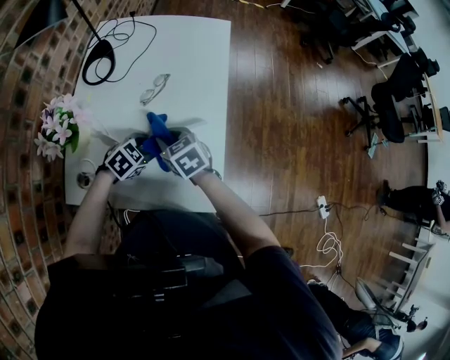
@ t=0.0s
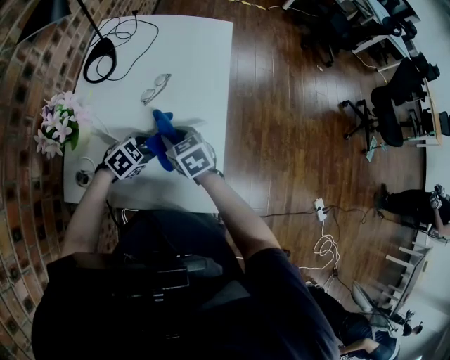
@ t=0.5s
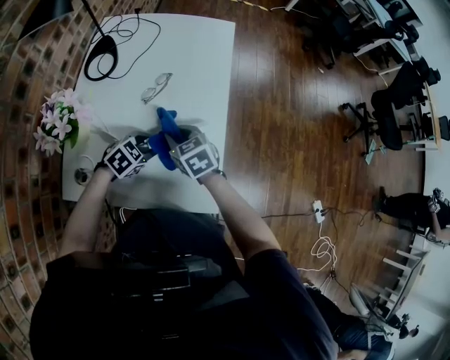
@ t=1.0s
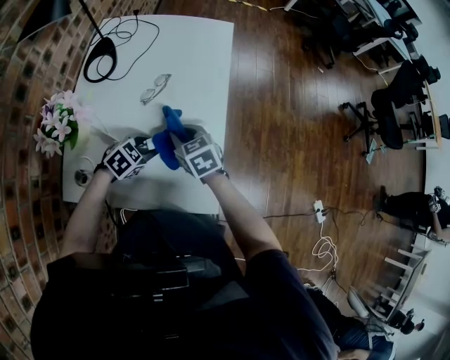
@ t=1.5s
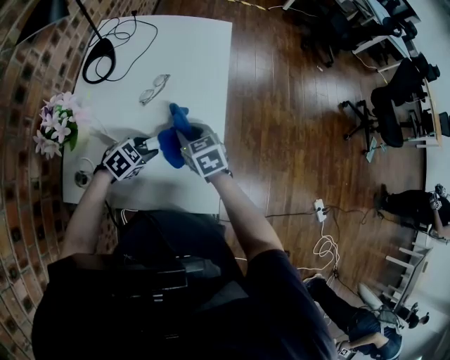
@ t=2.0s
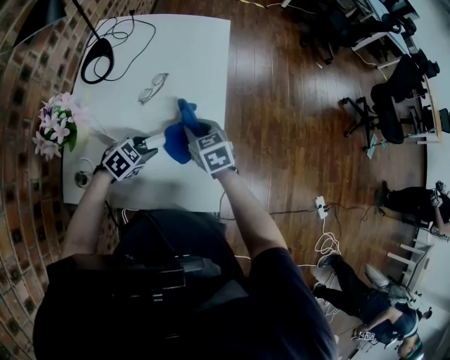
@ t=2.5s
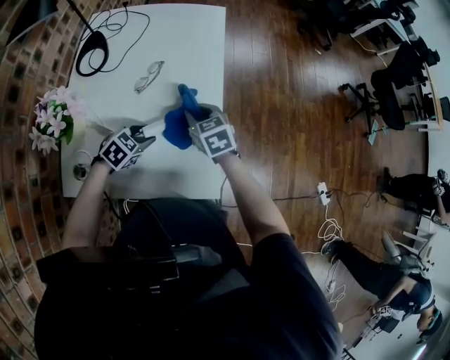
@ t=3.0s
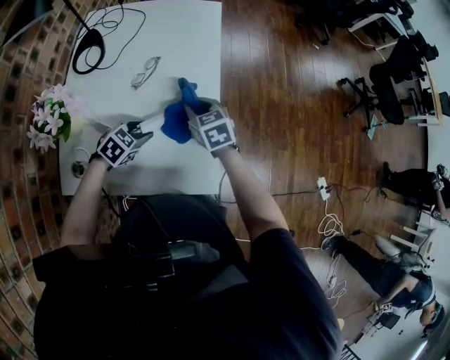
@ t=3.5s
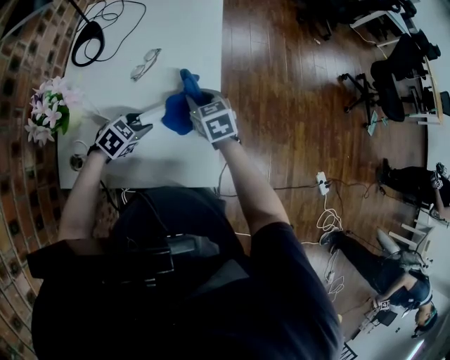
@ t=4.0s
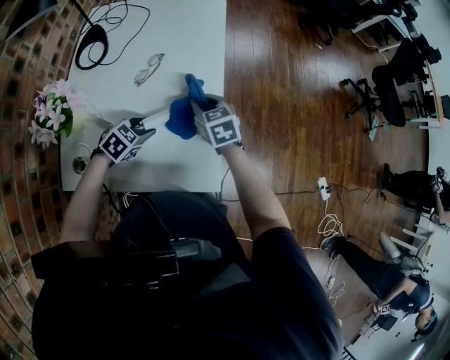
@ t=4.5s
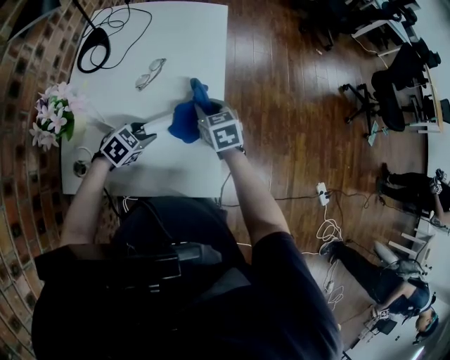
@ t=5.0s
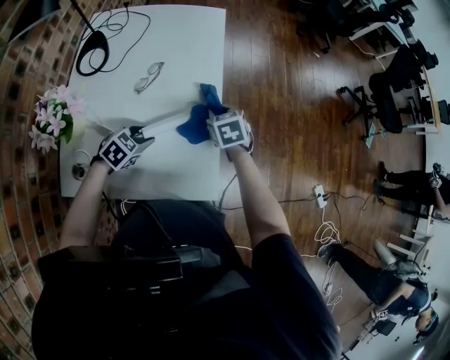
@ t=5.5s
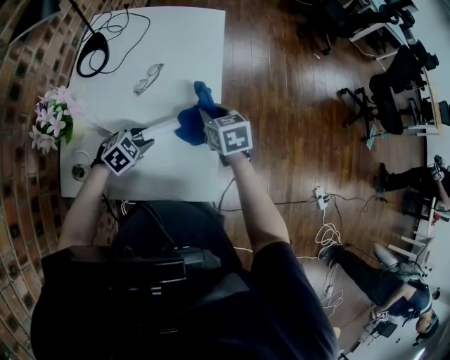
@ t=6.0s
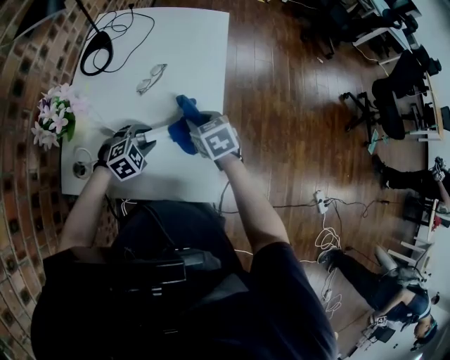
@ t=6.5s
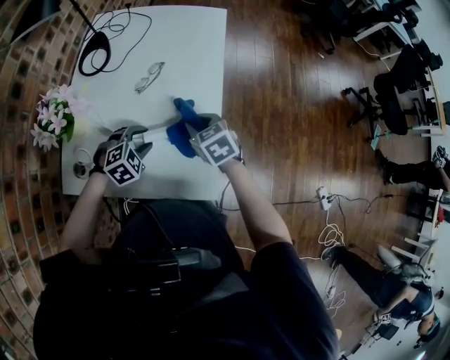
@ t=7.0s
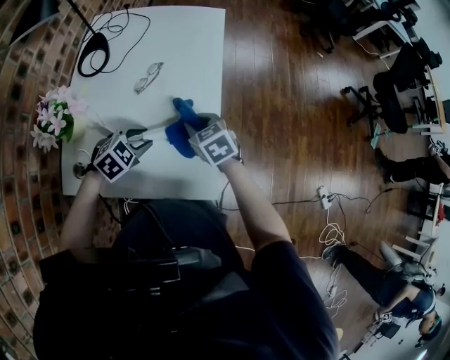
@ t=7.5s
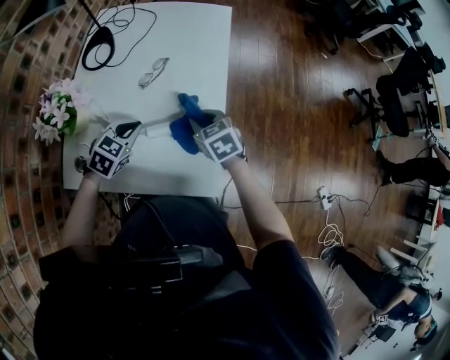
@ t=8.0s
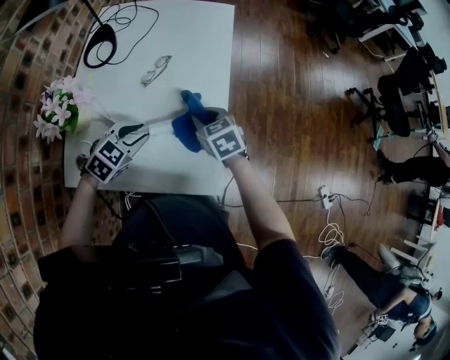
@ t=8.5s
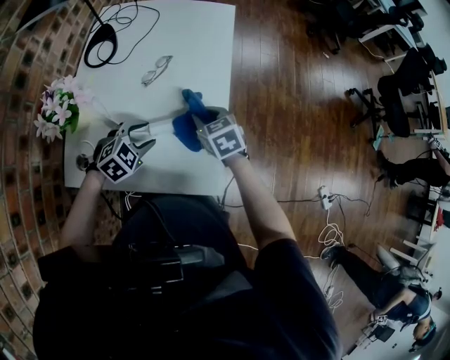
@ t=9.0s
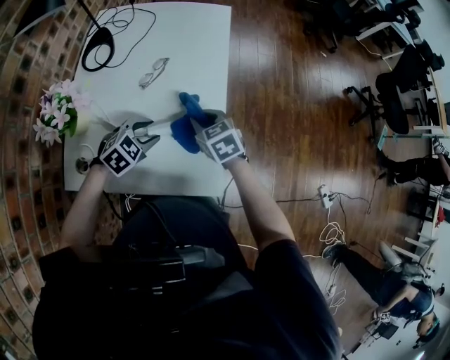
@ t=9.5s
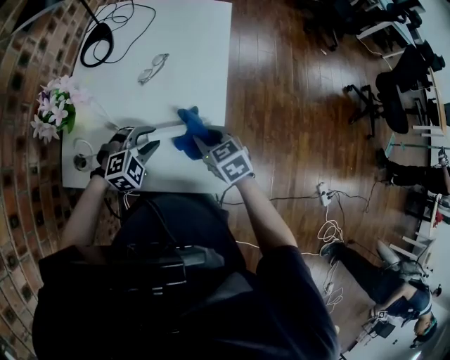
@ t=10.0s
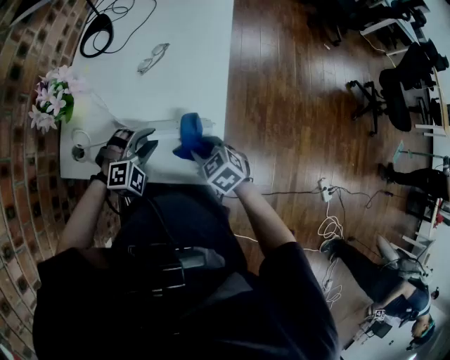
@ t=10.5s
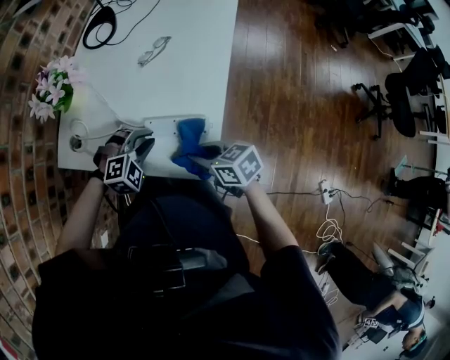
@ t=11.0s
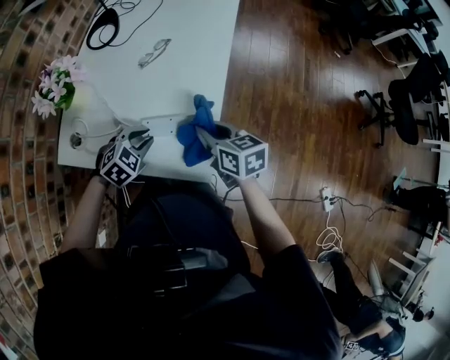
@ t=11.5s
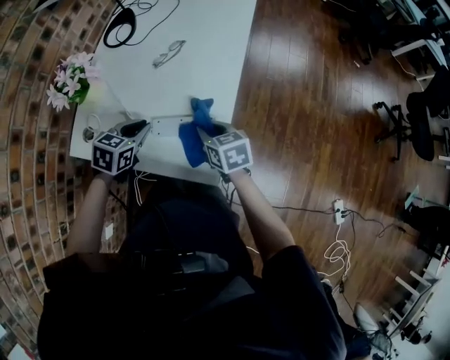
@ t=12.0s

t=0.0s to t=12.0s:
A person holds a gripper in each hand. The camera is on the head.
t=0.0s to t=2.0s: The right gripper travels to the right by approximately 5 cm.
t=2.0s to t=4.0s: The right gripper shifts by approximately 5 cm.
t=6.0s to t=8.0s: The left gripper heads upward, covering approximately 5 cm, and closes. Meanwhile the right gripper moves roughly 5 cm.
t=8.0s to t=10.0s: The right gripper shifts approximately 5 cm backward. The left gripper shifts approximately 10 cm to the right and backward, rotates some 30 degrees, and opens.
t=10.0s to t=12.0s: The right gripper moves about 10 cm backward and comes back, while the left gripper twists approximately 60 degrees counterclockwise, seen from behind, and closes up.

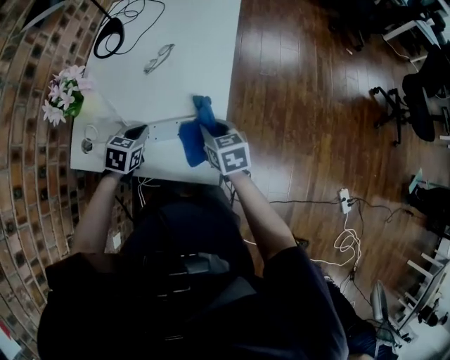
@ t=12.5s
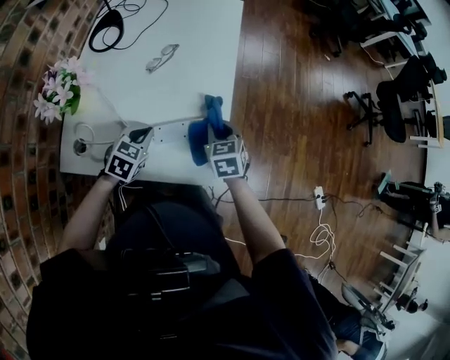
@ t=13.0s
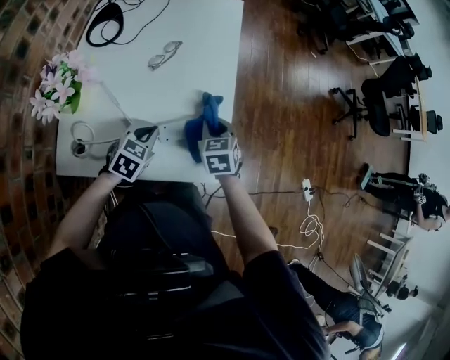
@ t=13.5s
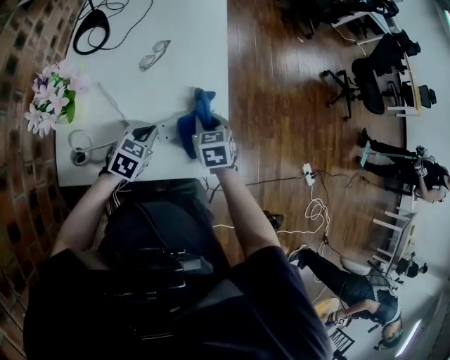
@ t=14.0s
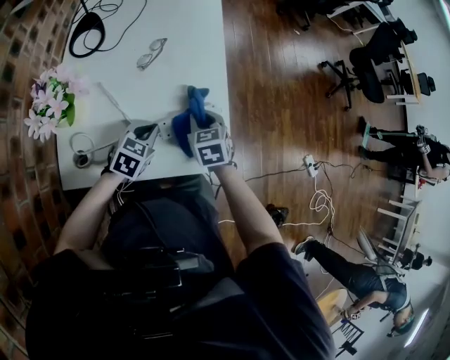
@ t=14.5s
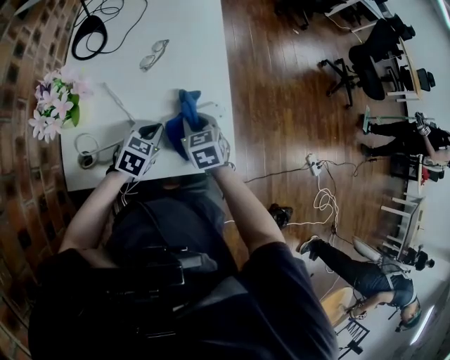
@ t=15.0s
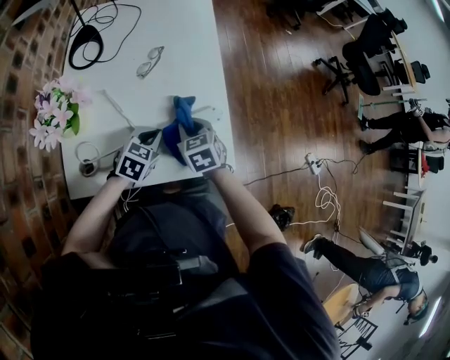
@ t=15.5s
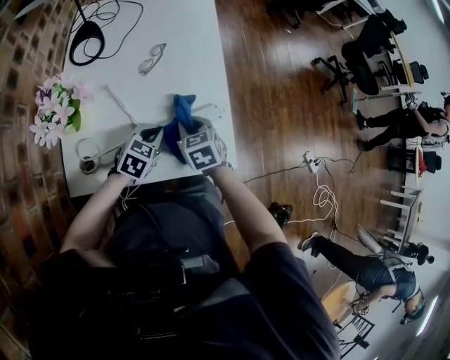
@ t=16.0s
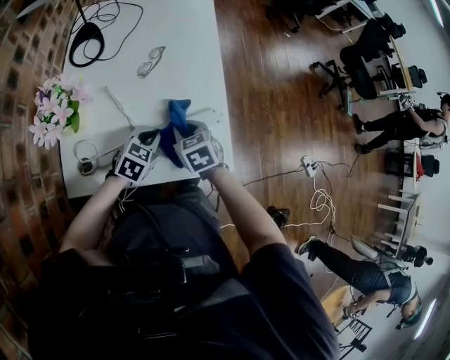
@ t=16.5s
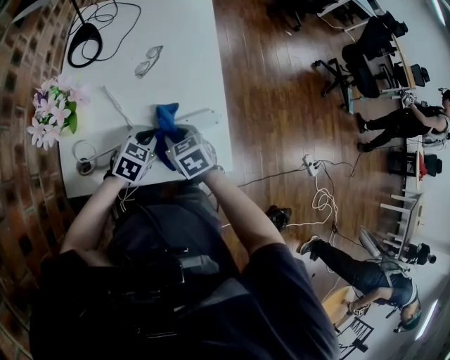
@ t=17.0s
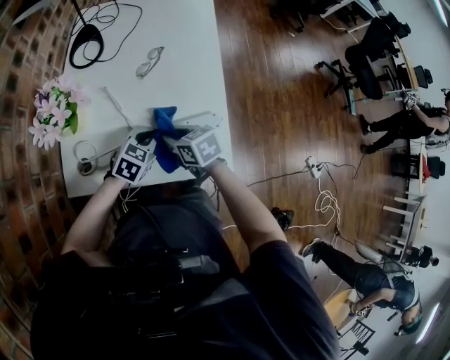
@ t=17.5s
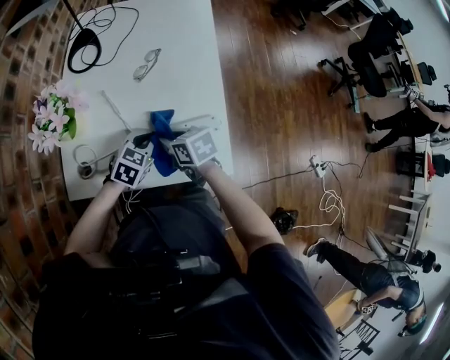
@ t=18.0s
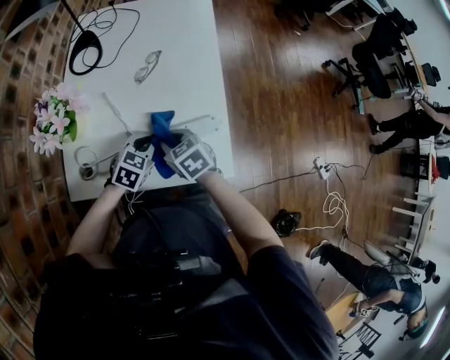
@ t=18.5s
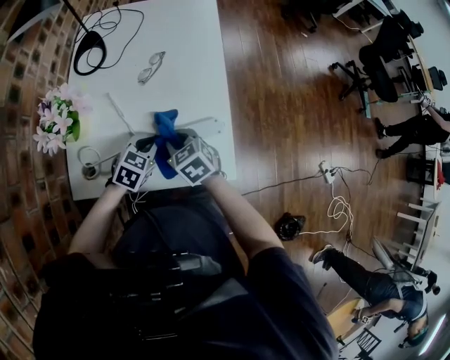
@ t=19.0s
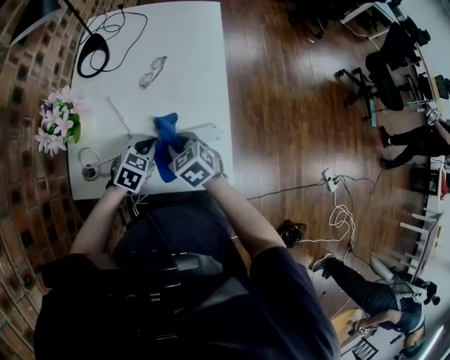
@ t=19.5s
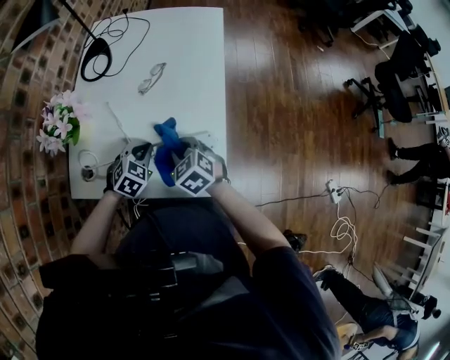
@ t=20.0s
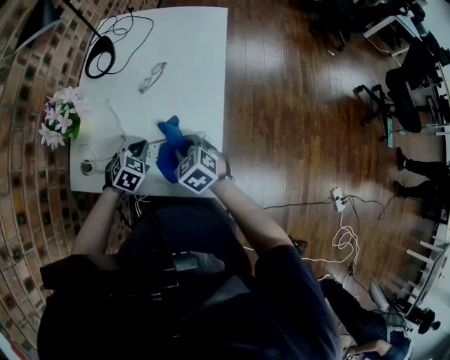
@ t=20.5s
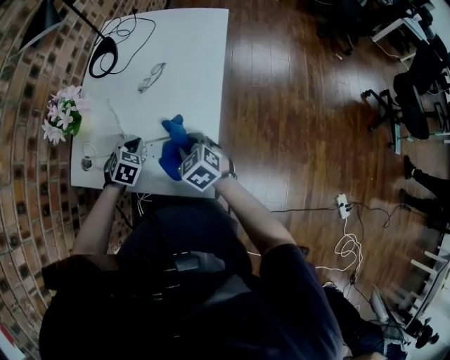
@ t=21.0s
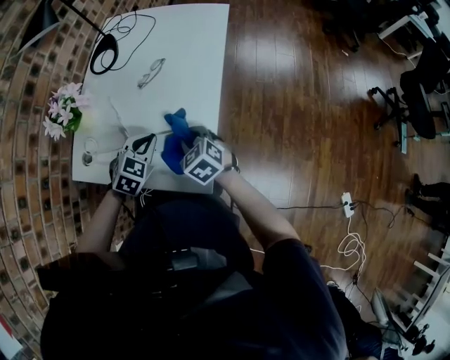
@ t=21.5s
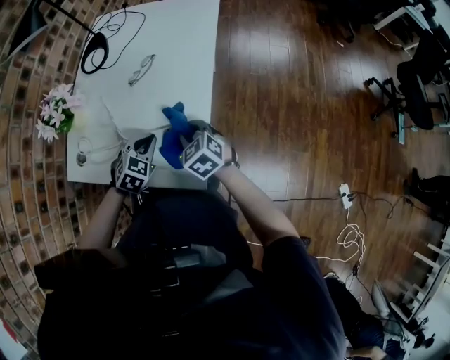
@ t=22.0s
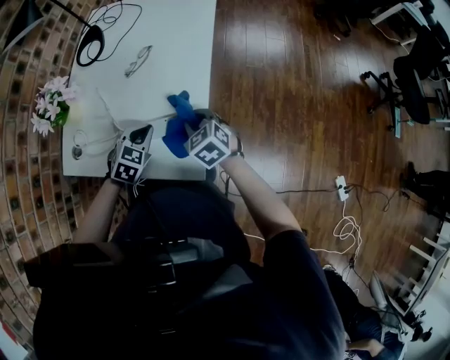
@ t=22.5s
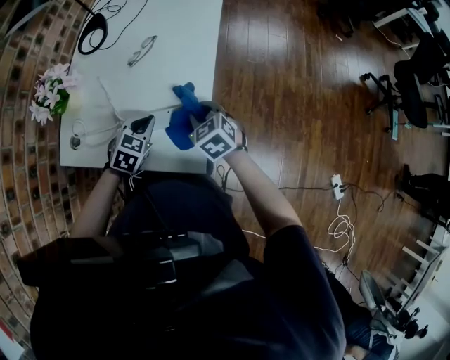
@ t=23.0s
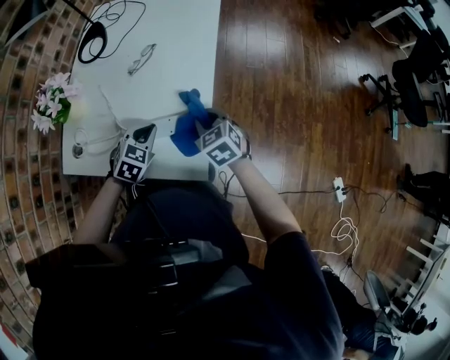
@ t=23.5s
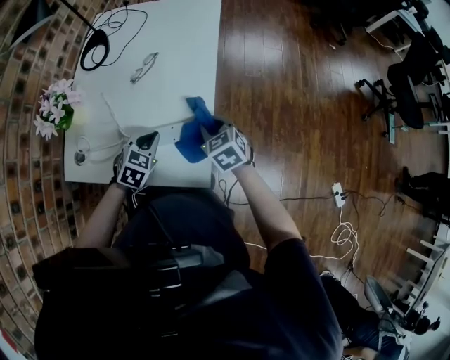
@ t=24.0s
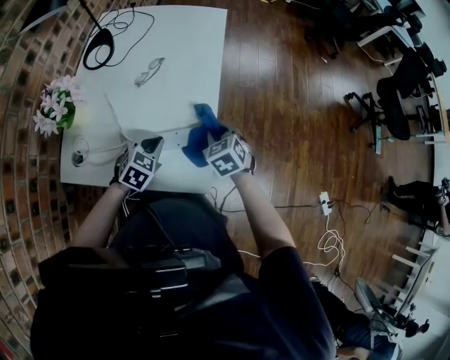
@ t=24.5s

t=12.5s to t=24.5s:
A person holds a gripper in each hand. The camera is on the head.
t=12.5s to t=14.5s: The right gripper shifts by approximately 5 cm, and rotates some 30 degrees. The left gripper swivels about 30 degrees.
t=14.5s to t=16.5s: The right gripper heads to the left, covering roughly 5 cm.
t=18.5s to t=20.5s: The right gripper is displaced to the right by some 10 cm, and changes its angle by some 20 degrees; the left gripper rotates some 20 degrees.
t=20.5s to t=22.5s: The grippers both shift to the right by about 10 cm.
t=22.5s to t=24.5s: The grippers make only small movements.

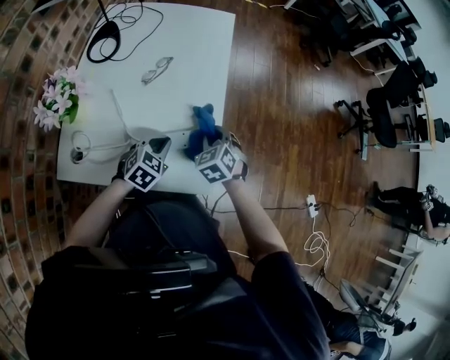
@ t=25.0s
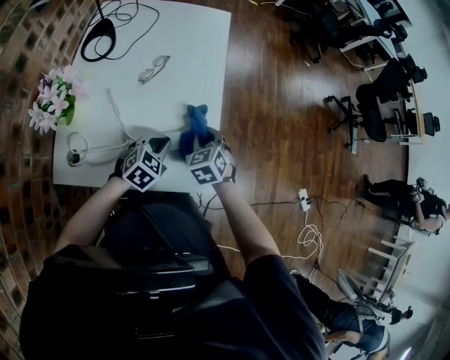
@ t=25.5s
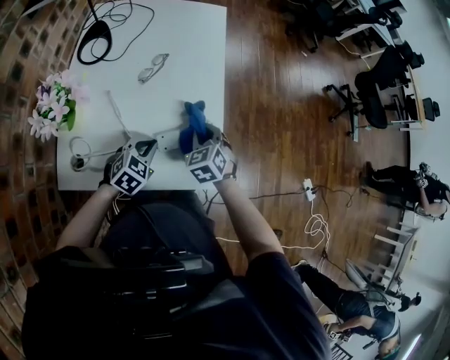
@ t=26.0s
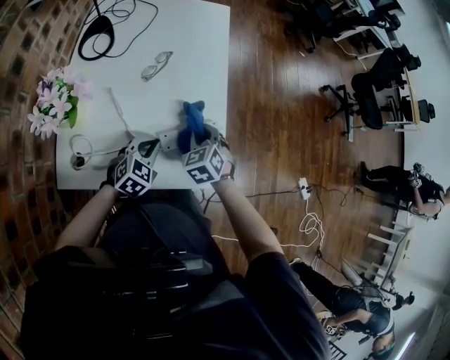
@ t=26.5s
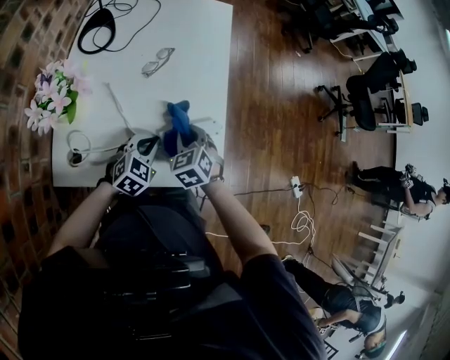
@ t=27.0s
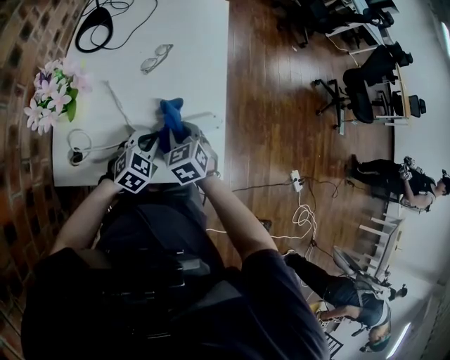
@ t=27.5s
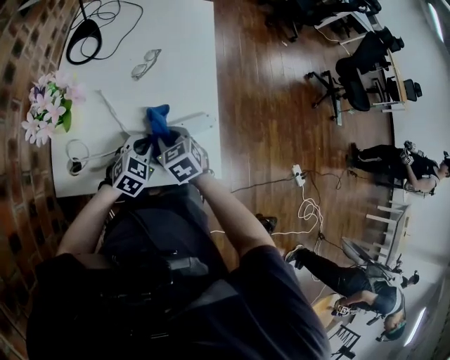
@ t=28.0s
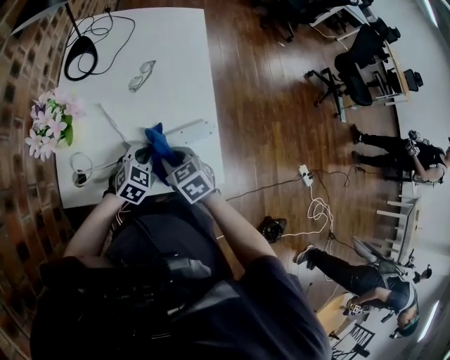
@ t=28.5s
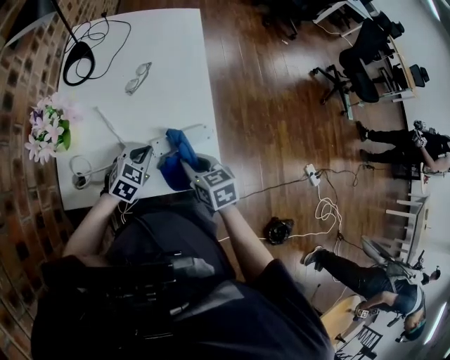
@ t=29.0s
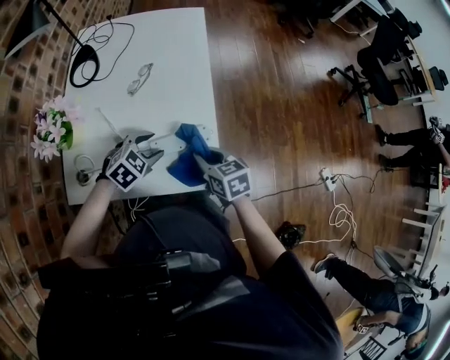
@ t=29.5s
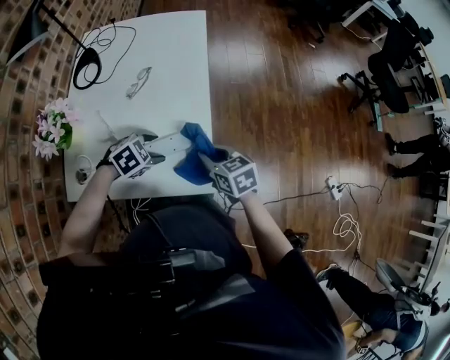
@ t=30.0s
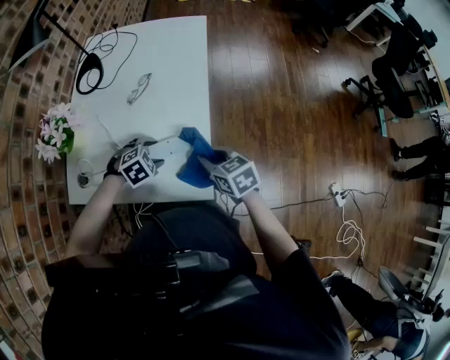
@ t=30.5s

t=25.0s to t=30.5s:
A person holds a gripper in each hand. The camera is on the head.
t=25.0s to t=27.0s: The left gripper goes about 5 cm to the left; the right gripper is displaced to the left and backward by approximately 10 cm.
t=27.0s to t=28.5s: The right gripper travels backward by roughly 5 cm, and rotates approximately 20 degrees.
t=28.5s to t=30.5s: The left gripper is displaced to the right by roughly 5 cm, changes its angle by approximately 30 degrees, and opens its fingers, while the right gripper travels to the right by roughly 15 cm.
